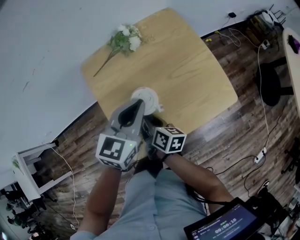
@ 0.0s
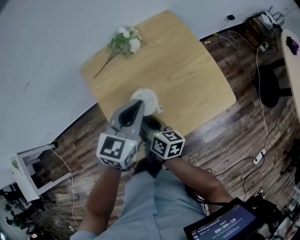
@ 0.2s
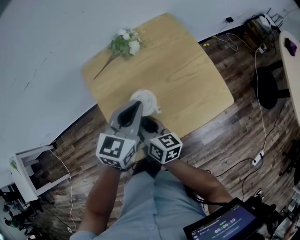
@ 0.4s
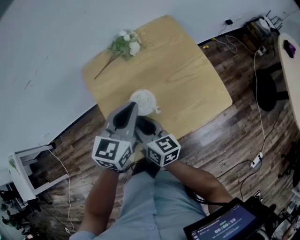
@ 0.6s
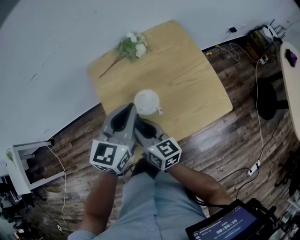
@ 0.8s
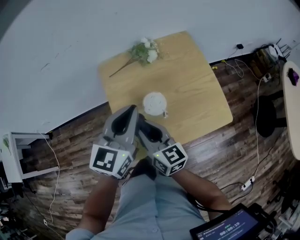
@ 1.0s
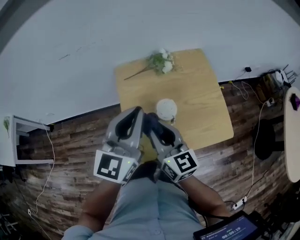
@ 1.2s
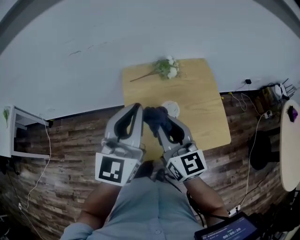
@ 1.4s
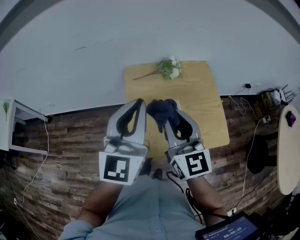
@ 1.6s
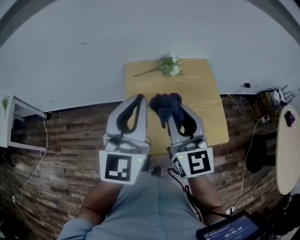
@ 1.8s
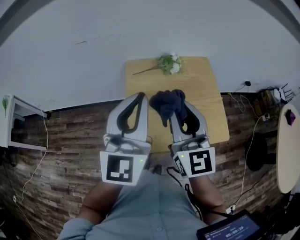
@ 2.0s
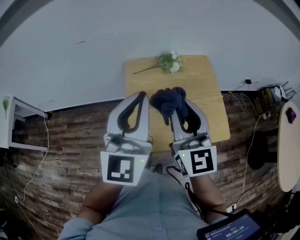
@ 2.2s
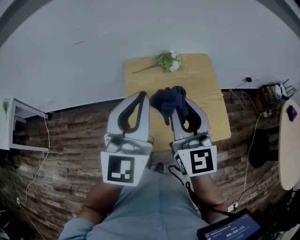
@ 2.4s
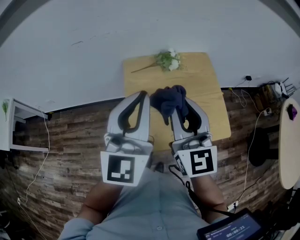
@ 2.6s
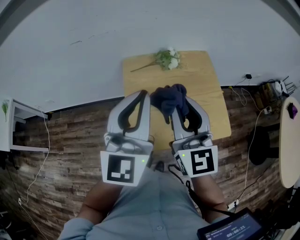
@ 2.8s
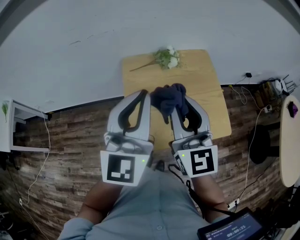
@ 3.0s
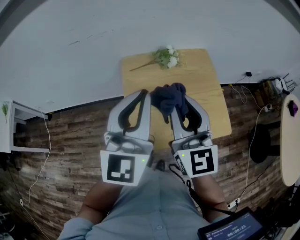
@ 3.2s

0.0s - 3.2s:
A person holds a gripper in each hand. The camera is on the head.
0.0s - 1.6s: The left gripper heads upward and to the left, covering approximately 25 cm, and tilts its fingers some 30 degrees upward, while the right gripper shifts about 30 cm upward, and rotates around the line of its fingers by approximately 60 degrees, counterclockwise from behind.
1.6s - 3.2s: There are only small adjustments of the grippers.

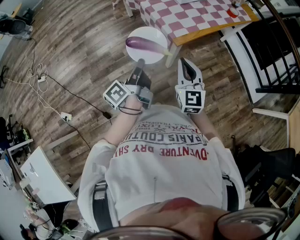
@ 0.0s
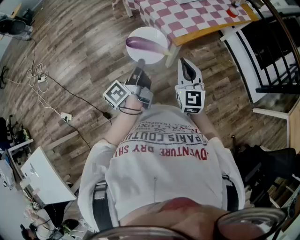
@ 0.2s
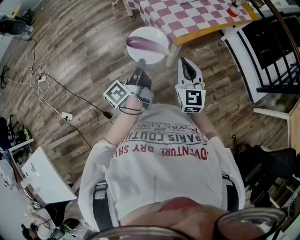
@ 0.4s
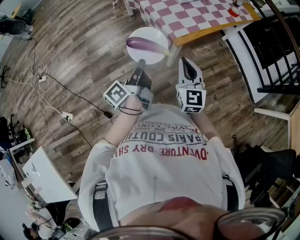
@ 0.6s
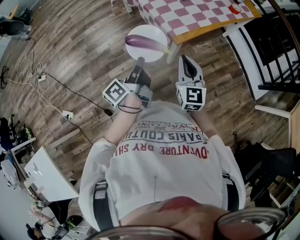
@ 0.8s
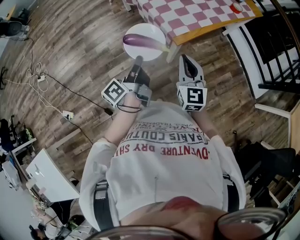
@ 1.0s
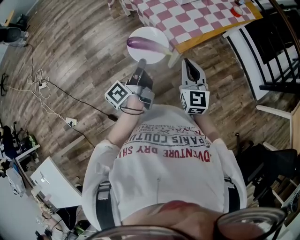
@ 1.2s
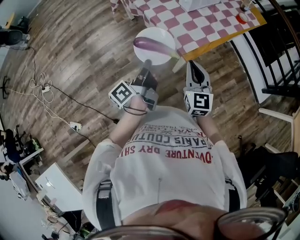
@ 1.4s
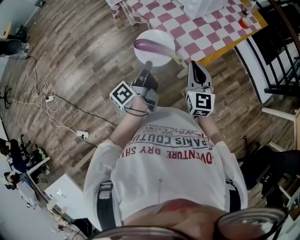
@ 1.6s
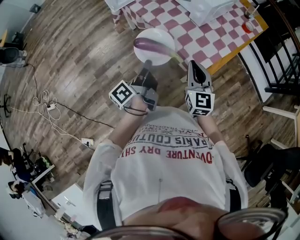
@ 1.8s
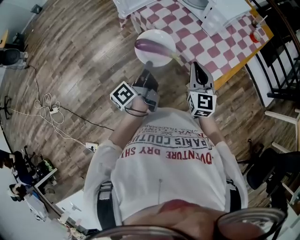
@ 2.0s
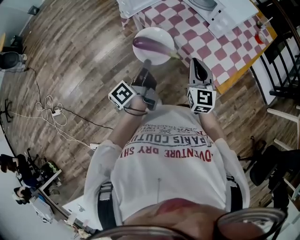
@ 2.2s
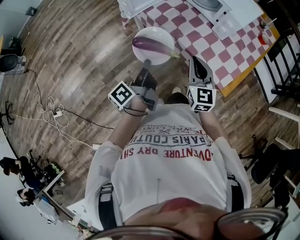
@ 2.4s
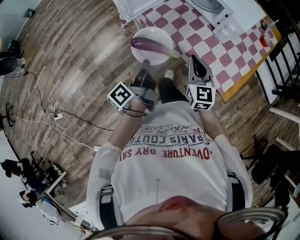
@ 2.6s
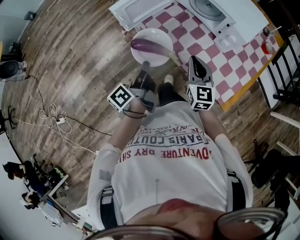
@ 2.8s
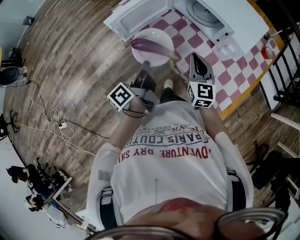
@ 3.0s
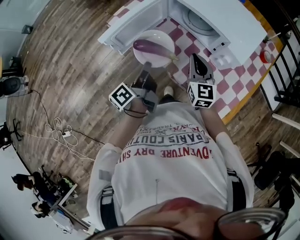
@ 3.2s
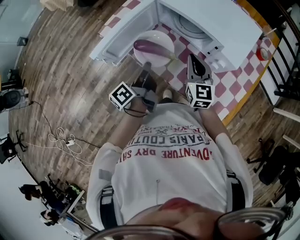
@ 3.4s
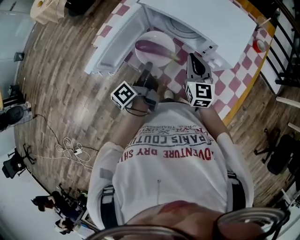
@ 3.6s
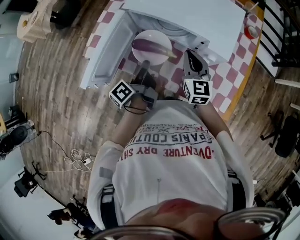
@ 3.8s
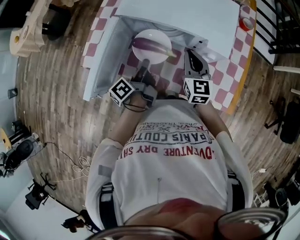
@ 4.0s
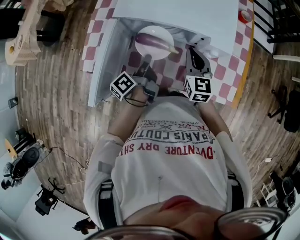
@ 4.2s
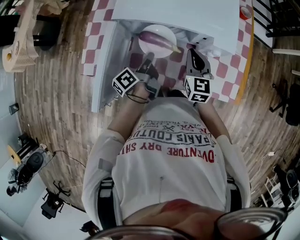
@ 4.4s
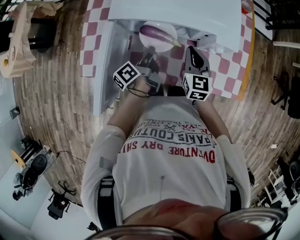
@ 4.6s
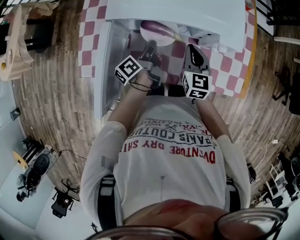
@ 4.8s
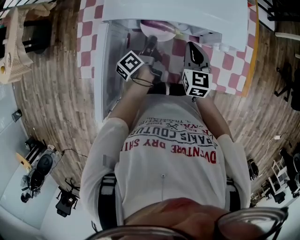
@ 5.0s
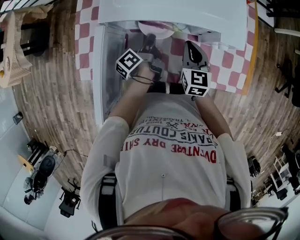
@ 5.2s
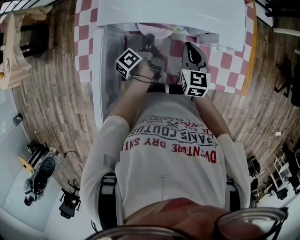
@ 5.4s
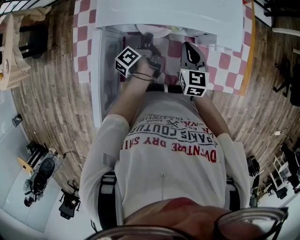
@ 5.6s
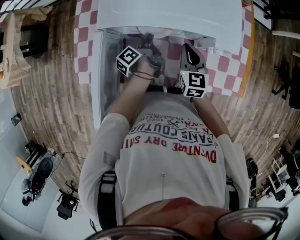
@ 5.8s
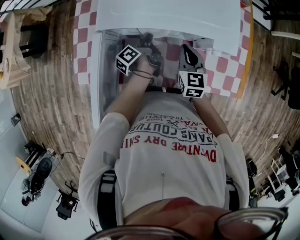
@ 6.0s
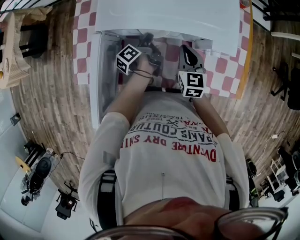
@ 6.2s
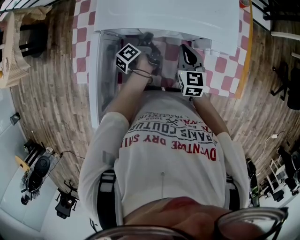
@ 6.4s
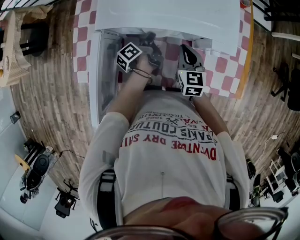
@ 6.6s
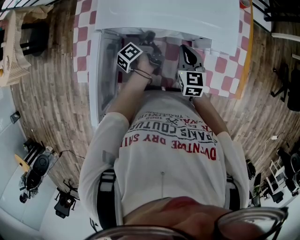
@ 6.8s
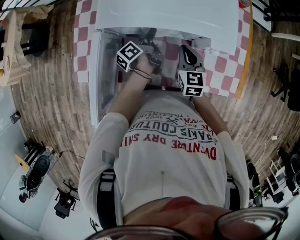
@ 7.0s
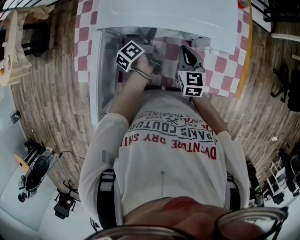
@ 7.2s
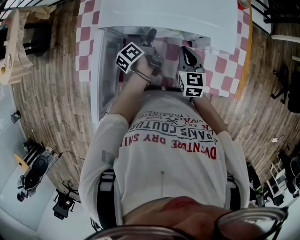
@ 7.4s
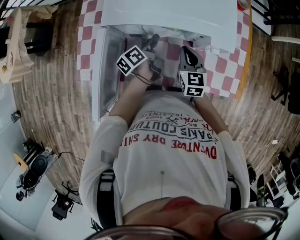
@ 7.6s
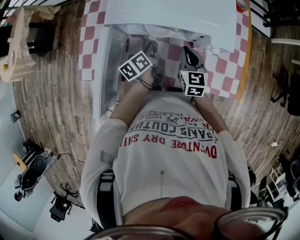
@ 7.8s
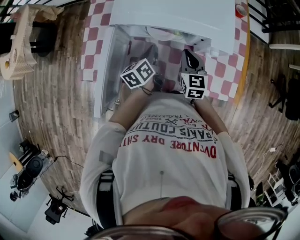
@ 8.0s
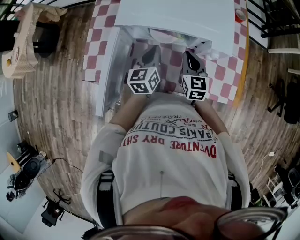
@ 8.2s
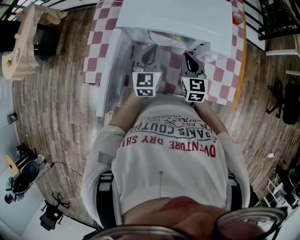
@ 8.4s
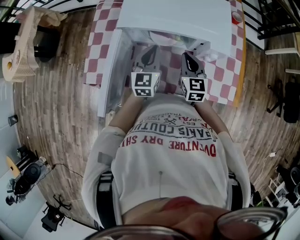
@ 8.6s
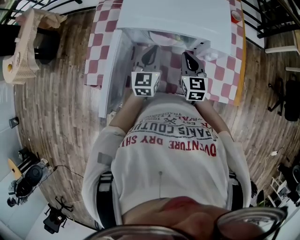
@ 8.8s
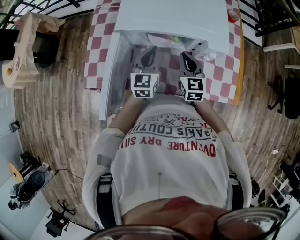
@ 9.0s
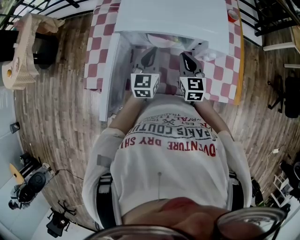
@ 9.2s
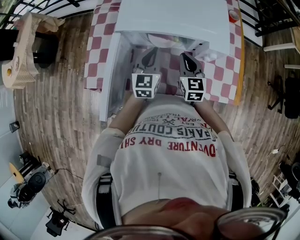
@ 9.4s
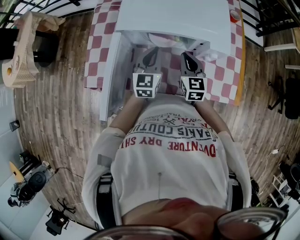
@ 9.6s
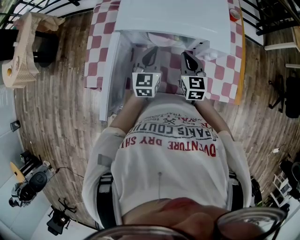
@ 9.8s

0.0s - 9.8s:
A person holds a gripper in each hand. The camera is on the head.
0.0s - 1.4s: The right gripper changes place by some 15 cm.
1.4s - 2.8s: The right gripper shifts by some 40 cm.
2.8s - 4.2s: The right gripper shifts by some 25 cm, and swivels some 30 degrees.
4.2s - 5.6s: The right gripper moves downward, approximately 5 cm.
7.0s - 8.4s: The right gripper goes approximately 5 cm upward.

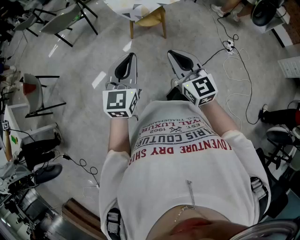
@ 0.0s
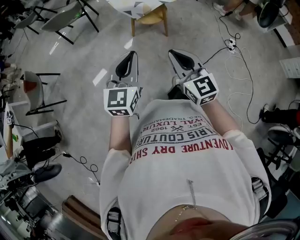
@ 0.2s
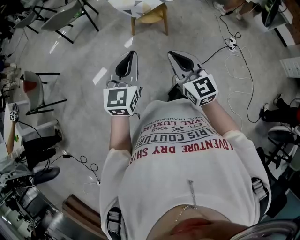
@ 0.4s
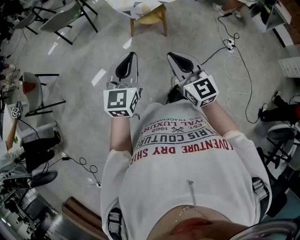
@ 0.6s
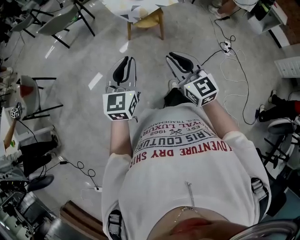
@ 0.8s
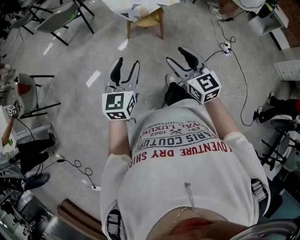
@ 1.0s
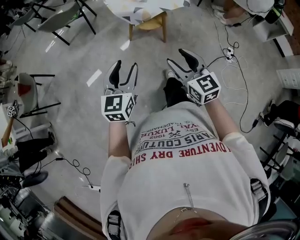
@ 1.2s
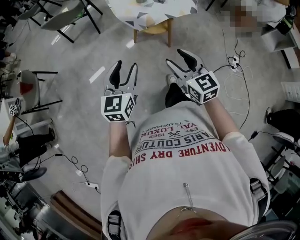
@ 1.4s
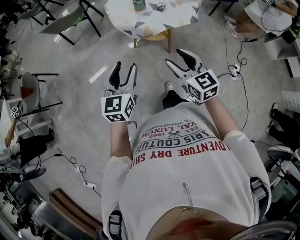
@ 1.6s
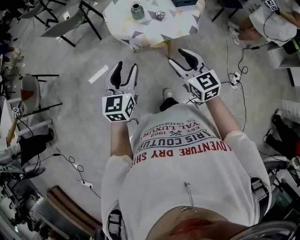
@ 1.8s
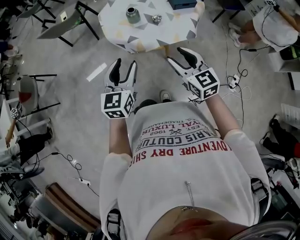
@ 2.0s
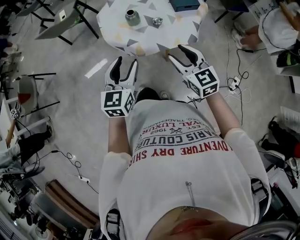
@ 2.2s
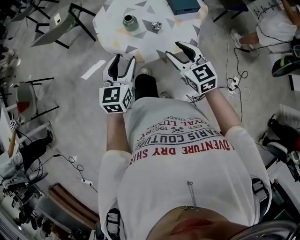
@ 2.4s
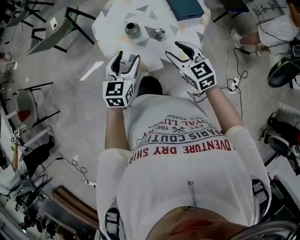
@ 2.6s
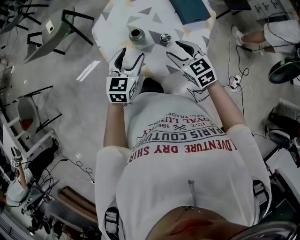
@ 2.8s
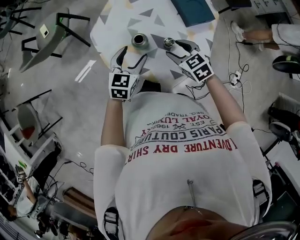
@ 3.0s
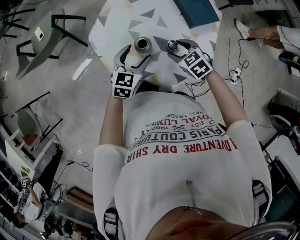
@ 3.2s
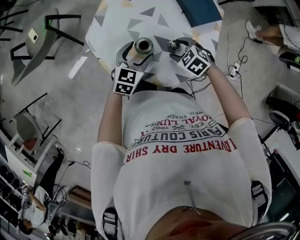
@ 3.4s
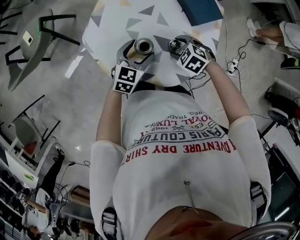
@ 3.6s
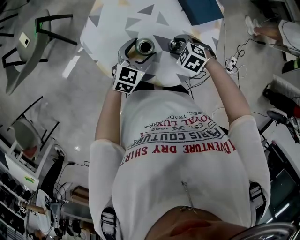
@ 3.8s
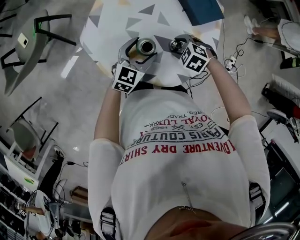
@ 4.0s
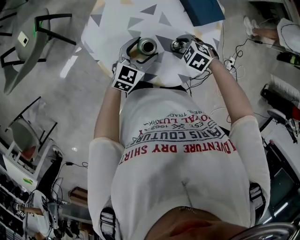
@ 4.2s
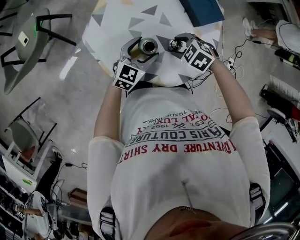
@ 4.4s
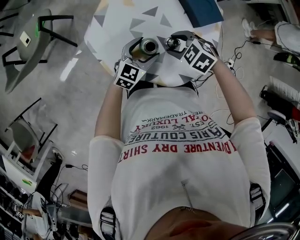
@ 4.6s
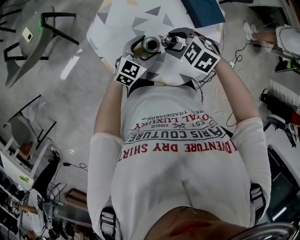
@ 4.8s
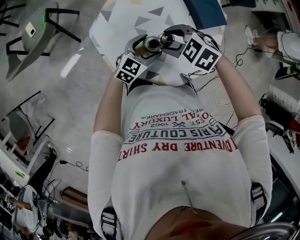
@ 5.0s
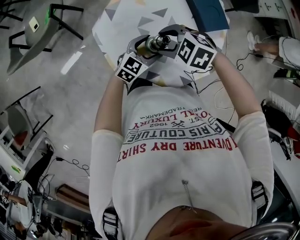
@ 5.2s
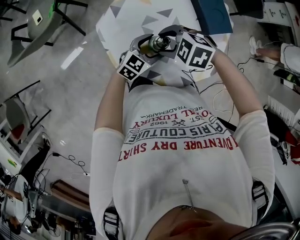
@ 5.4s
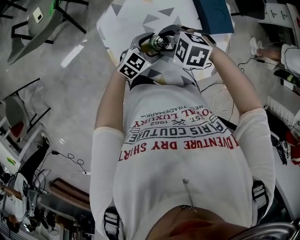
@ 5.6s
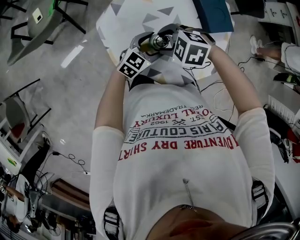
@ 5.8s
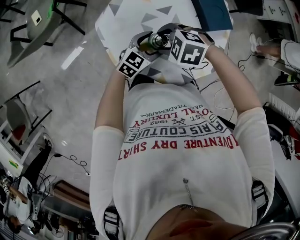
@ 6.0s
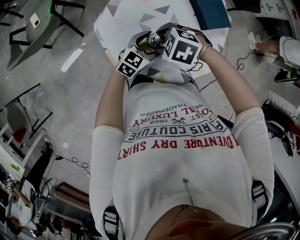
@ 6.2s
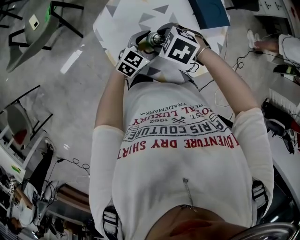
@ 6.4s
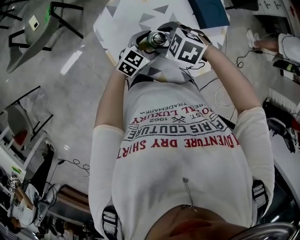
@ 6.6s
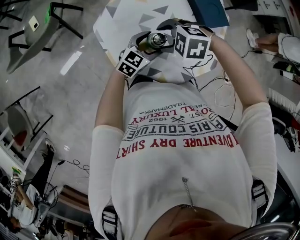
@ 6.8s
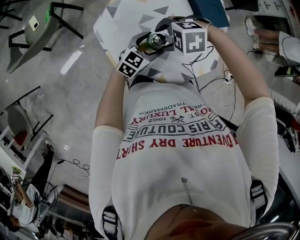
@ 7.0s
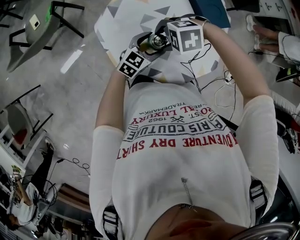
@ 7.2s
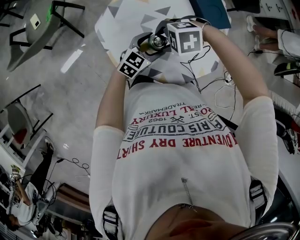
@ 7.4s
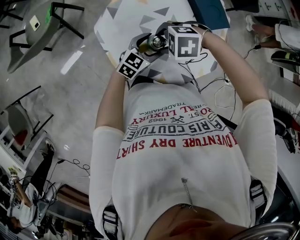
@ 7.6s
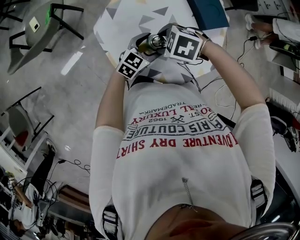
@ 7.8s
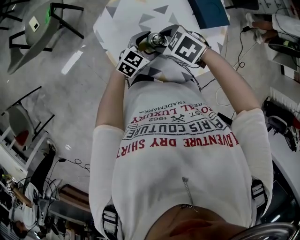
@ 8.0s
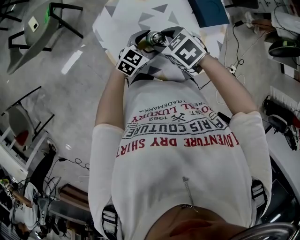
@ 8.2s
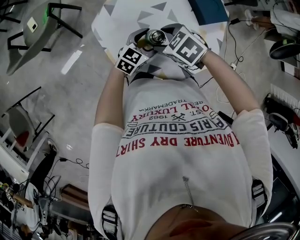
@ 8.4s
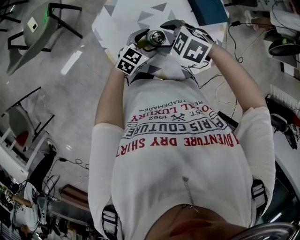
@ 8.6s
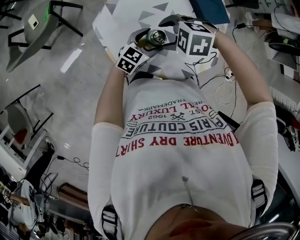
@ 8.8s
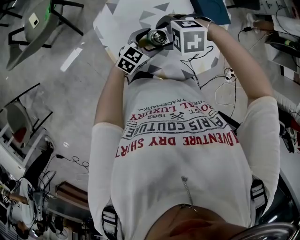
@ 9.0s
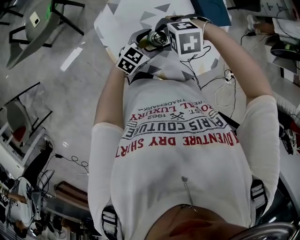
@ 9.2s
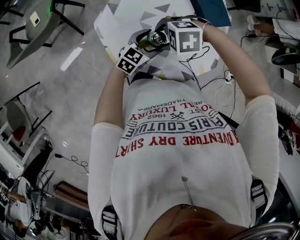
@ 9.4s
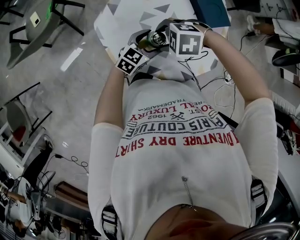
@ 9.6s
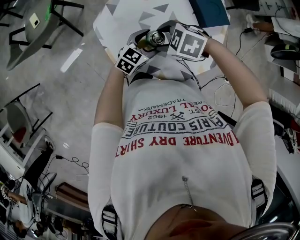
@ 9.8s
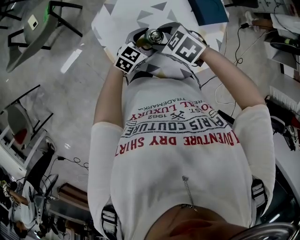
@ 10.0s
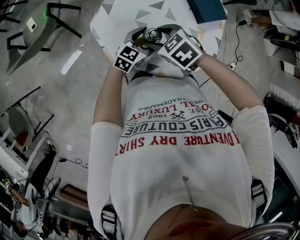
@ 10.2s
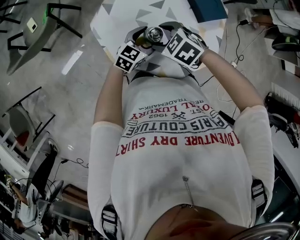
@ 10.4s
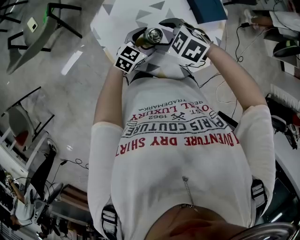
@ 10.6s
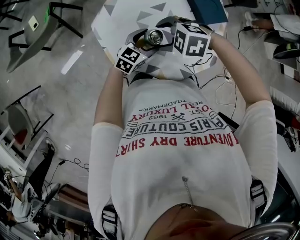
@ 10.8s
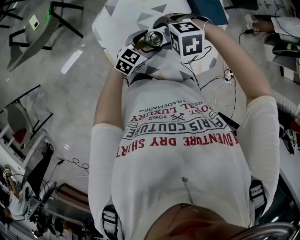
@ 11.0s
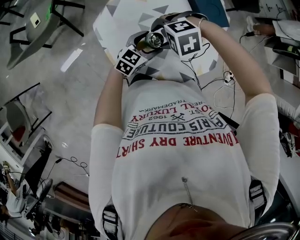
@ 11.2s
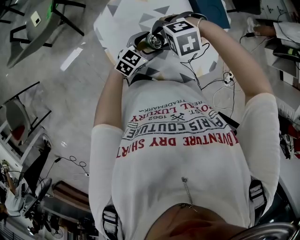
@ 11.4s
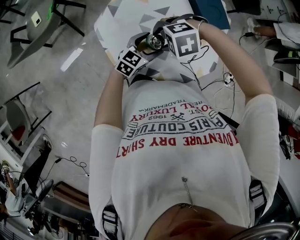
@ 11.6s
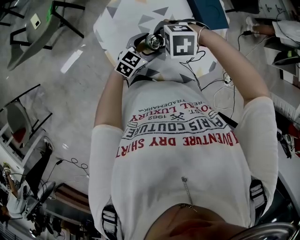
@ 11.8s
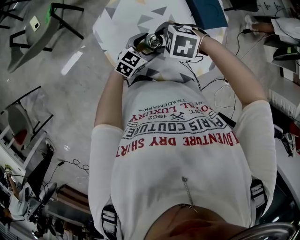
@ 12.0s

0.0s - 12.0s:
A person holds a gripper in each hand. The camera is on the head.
0.0s - 1.6s: The right gripper moves forward and to the right, approximately 25 cm, and opens up; the left gripper goes some 20 cm forward, and opens.
1.6s - 3.0s: The two grippers go roughly 40 cm forward. The right gripper swivels about 30 degrees. The left gripper rotates approximately 20 degrees.
3.0s - 4.4s: The grippers both shift downward by about 5 cm. The left gripper turns by about 20 degrees, while the right gripper swivels some 30 degrees.
4.4s - 6.0s: The right gripper moves approximately 15 cm, and turns by approximately 20 degrees.
9.0s - 10.4s: The right gripper rotates roughly 40 degrees.
10.4s - 12.0s: The right gripper swivels roughly 30 degrees.
